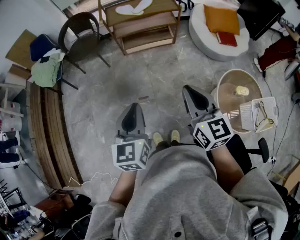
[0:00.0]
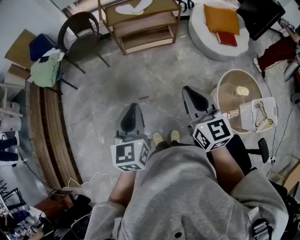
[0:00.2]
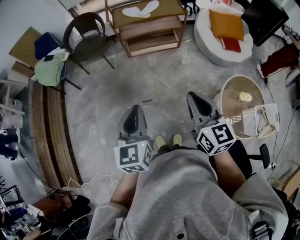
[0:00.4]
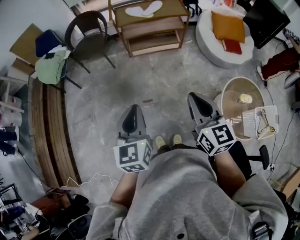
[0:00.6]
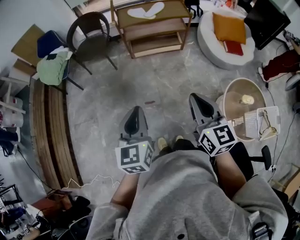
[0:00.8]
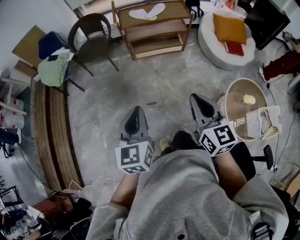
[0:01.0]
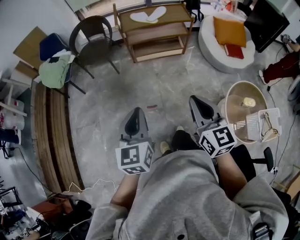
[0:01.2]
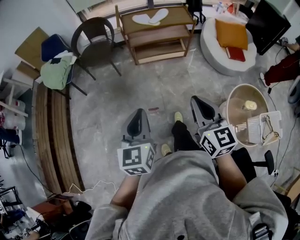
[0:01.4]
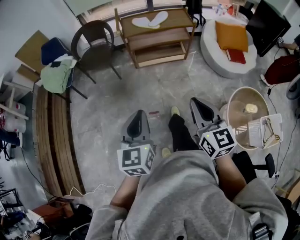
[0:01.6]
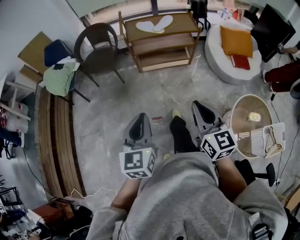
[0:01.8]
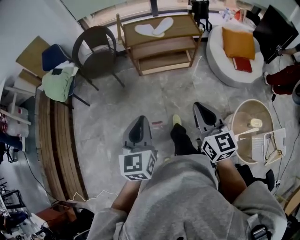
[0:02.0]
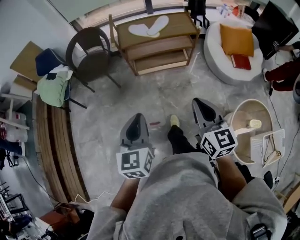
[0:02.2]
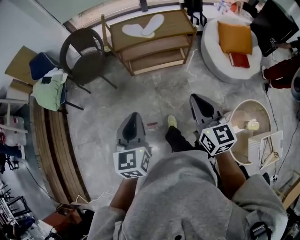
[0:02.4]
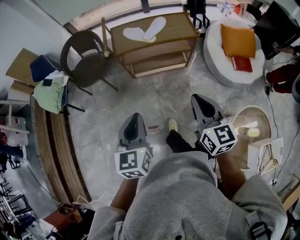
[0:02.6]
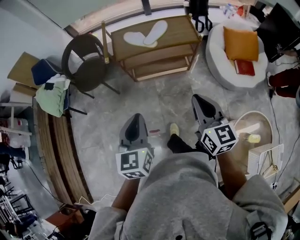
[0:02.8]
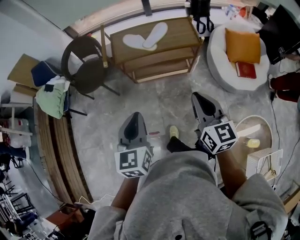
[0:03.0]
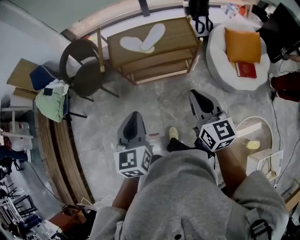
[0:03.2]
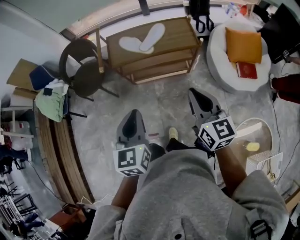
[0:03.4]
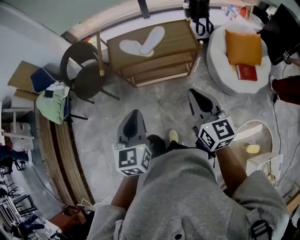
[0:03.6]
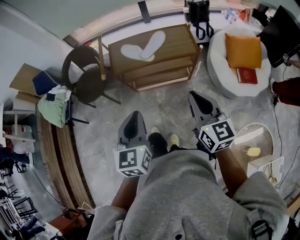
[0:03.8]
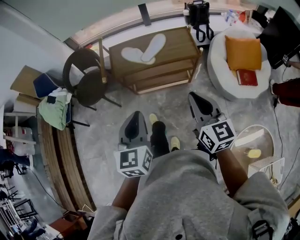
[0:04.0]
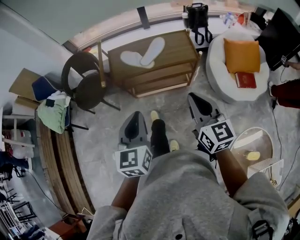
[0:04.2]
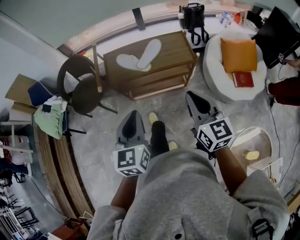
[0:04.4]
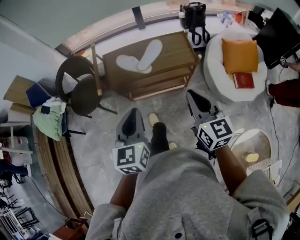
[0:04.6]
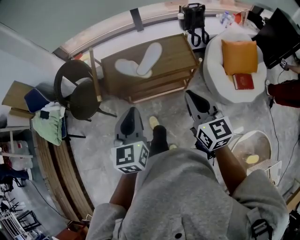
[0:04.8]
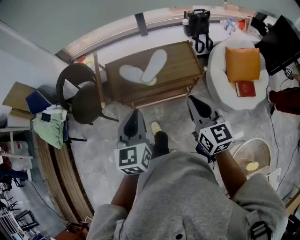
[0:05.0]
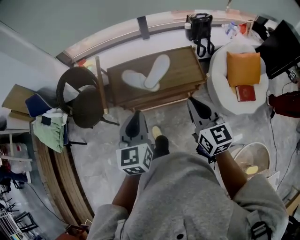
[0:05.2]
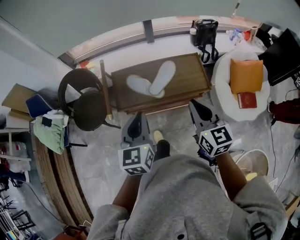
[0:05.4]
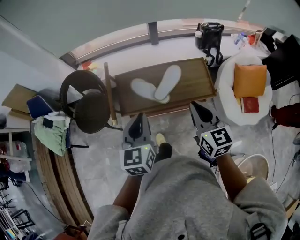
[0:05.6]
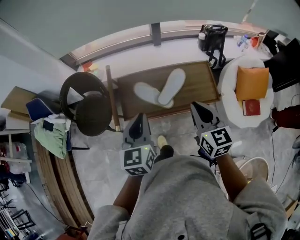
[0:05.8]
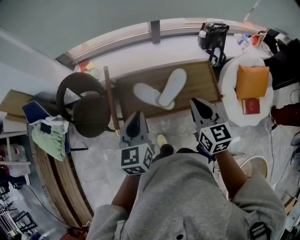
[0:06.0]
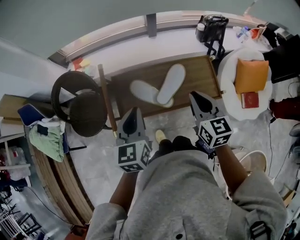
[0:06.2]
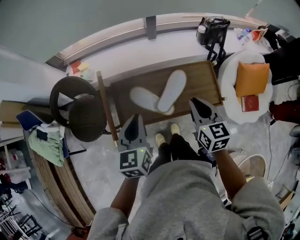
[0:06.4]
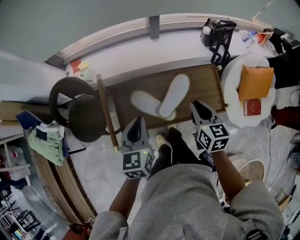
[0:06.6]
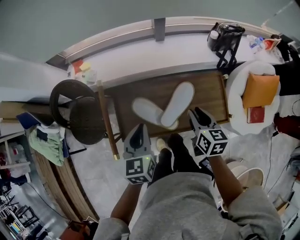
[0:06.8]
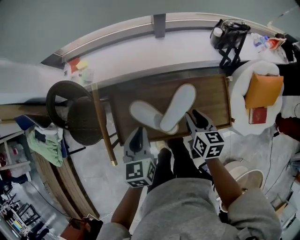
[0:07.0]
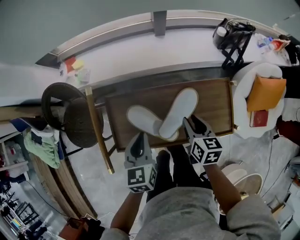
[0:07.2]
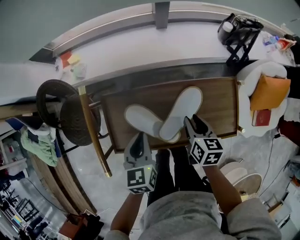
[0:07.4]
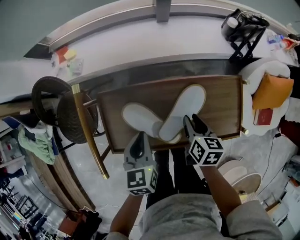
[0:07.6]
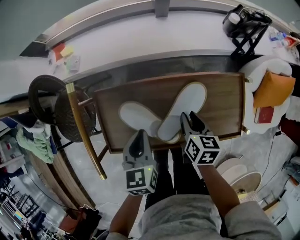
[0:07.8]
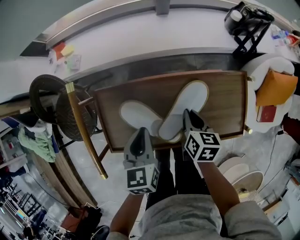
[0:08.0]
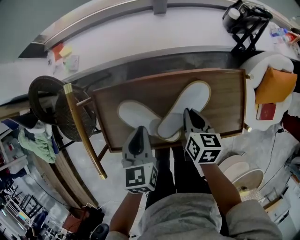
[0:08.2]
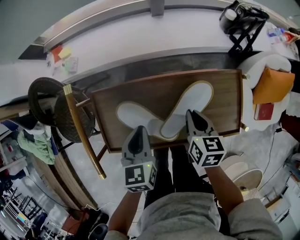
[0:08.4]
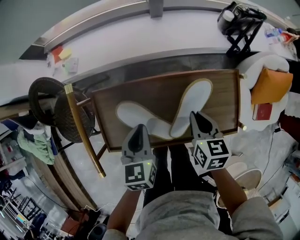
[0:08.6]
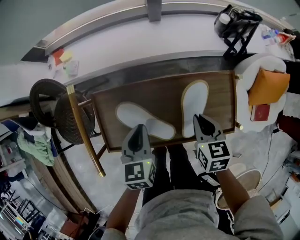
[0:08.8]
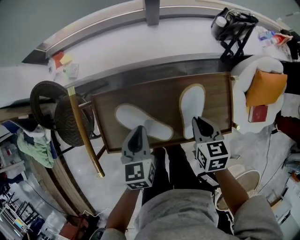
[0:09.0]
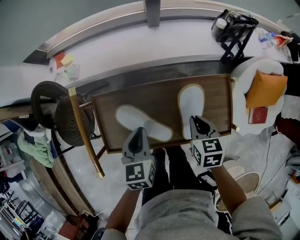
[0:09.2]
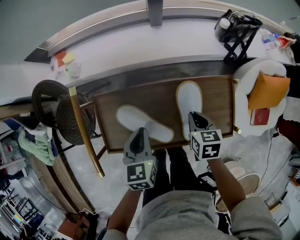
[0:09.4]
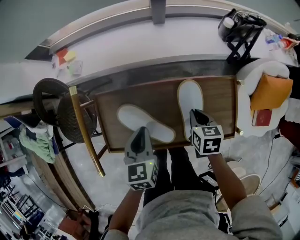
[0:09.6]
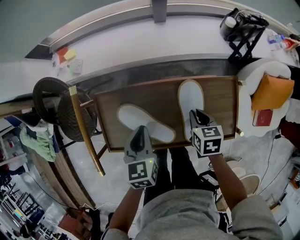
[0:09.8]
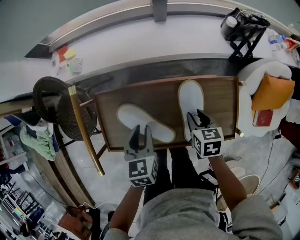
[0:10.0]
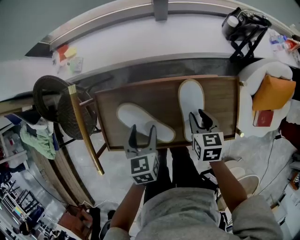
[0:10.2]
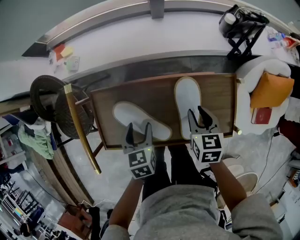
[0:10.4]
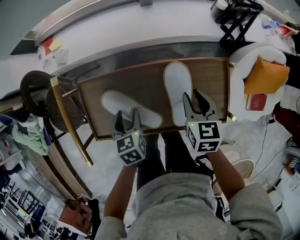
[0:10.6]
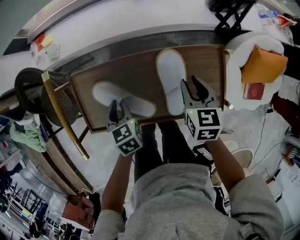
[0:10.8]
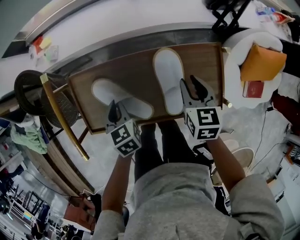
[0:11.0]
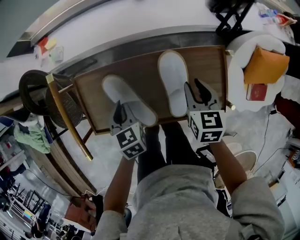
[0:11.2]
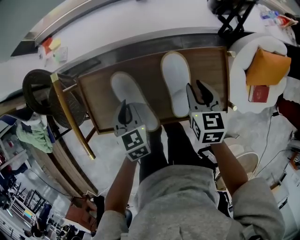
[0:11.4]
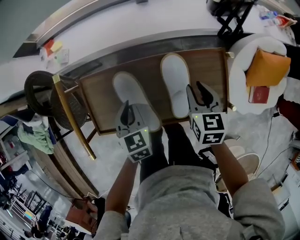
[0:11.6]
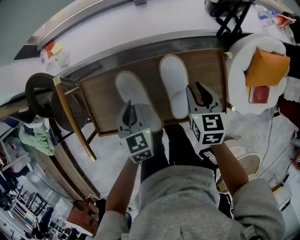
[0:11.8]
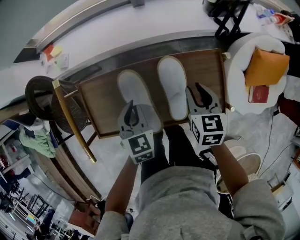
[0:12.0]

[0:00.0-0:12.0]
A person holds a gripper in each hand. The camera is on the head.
0:00.0 to 0:01.6: The left gripper goes some 5 cm to the left. Meanwhile the right gripper moves some 5 cm.
0:01.6 to 0:03.0: The grippers both shift forward by about 35 cm.
0:03.0 to 0:04.4: Both grippers move forward, roughly 10 cm.
0:04.4 to 0:06.0: The grippers both shift forward by approximately 30 cm.
0:06.0 to 0:07.6: Both grippers move downward and forward, some 30 cm. The left gripper swivels about 20 degrees. The right gripper turns by about 40 degrees, and opens its fingers.
0:07.6 to 0:09.0: The right gripper moves upward, some 5 cm, swivels about 20 degrees, and closes up.
0:09.0 to 0:10.4: The left gripper travels downward by some 5 cm, and opens its fingers, while the right gripper opens up.
0:10.4 to 0:12.0: The right gripper shifts by about 5 cm. Meanwhile the left gripper shifts approximately 5 cm to the right, swivels roughly 20 degrees, and closes up.

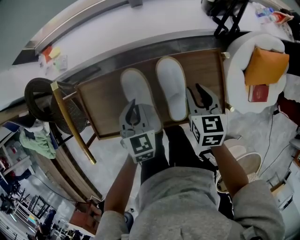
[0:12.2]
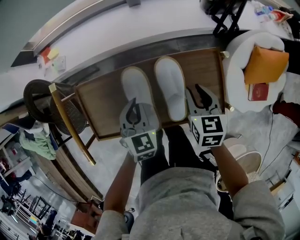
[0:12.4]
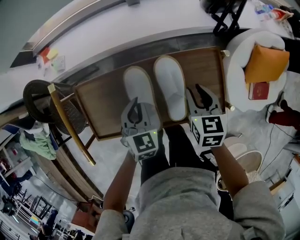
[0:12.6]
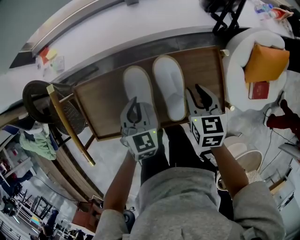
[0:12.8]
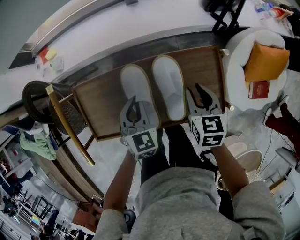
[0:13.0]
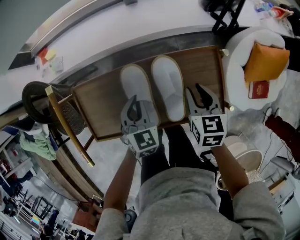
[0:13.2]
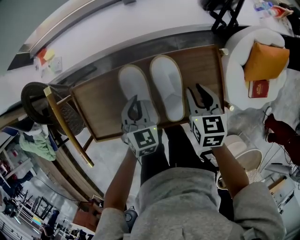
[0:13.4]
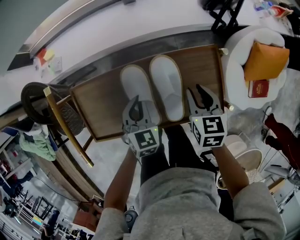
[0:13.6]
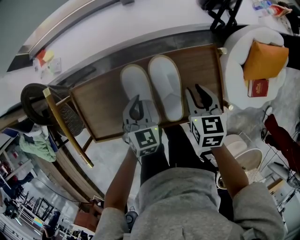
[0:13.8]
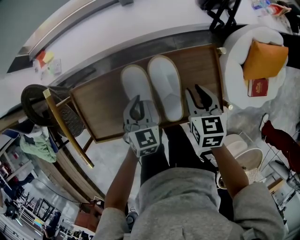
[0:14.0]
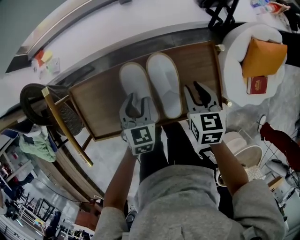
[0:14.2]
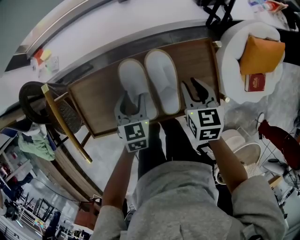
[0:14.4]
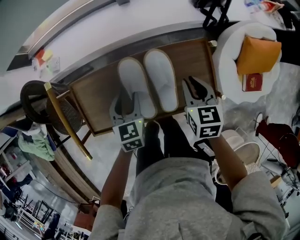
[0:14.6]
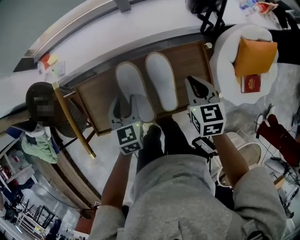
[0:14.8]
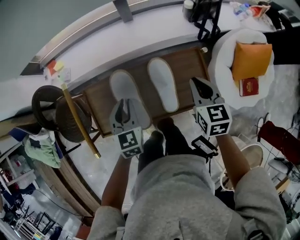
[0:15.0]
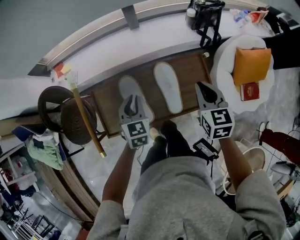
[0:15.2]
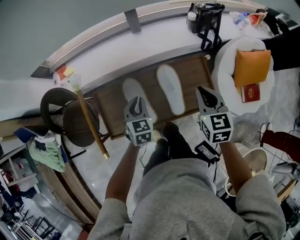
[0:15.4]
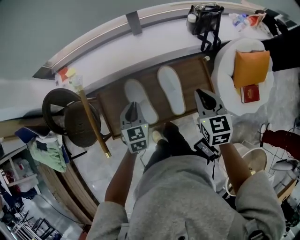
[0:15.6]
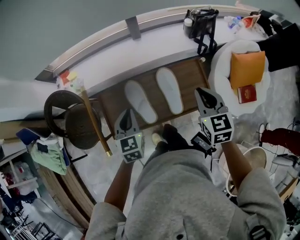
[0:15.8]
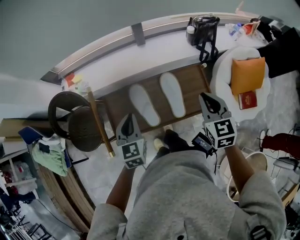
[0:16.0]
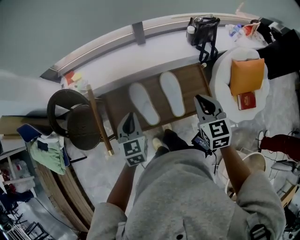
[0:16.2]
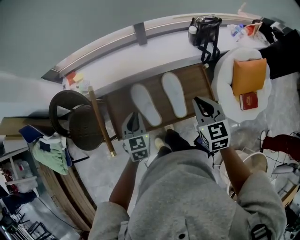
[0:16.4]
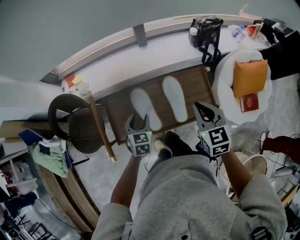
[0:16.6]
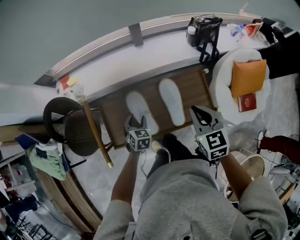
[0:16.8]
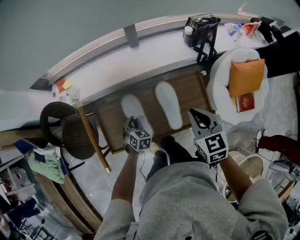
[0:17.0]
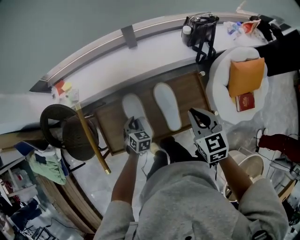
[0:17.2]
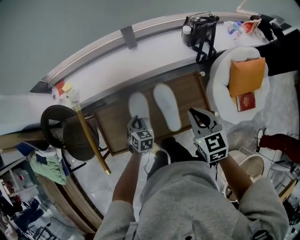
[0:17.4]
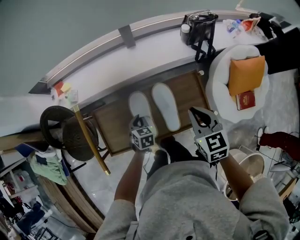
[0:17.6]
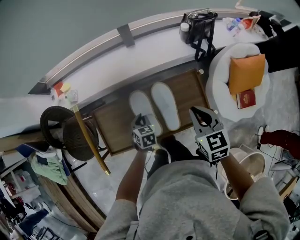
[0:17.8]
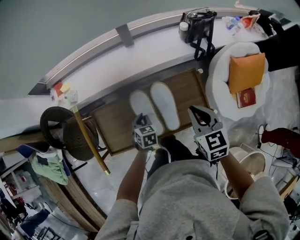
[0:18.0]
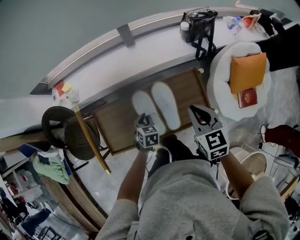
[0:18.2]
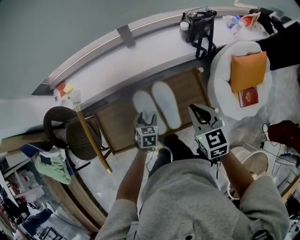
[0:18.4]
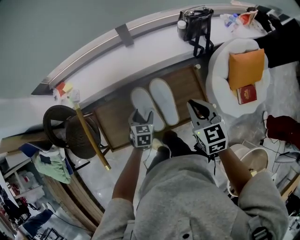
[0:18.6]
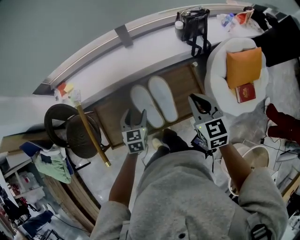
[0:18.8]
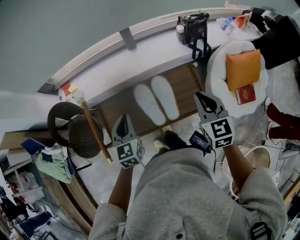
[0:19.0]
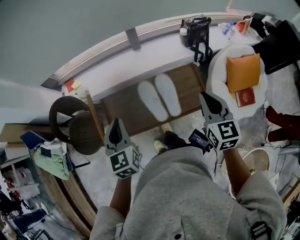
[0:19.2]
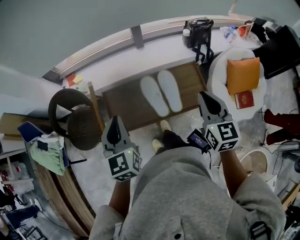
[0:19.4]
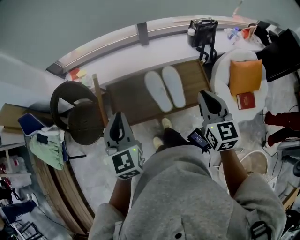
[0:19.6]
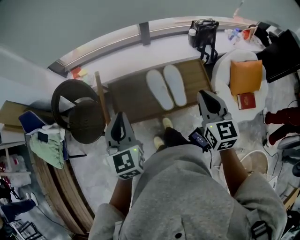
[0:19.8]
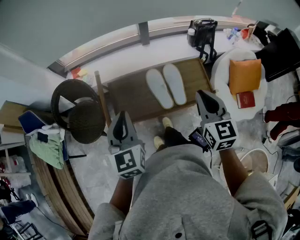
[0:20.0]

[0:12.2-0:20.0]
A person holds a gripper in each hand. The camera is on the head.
0:12.2 to 0:13.8: The left gripper moves some 5 cm.
0:13.8 to 0:15.4: The left gripper shifts about 10 cm upward and to the left, and opens and closes again. Meanwhile the right gripper goes some 15 cm upward, and closes its fingers.
0:15.4 to 0:16.8: The left gripper travels downward by some 5 cm, and opens its fingers. The right gripper shifts by approximately 5 cm.
0:16.8 to 0:18.4: The right gripper changes place by some 5 cm. Meanwhile the left gripper shifts approximately 10 cm to the right, and closes and opens again.
0:18.4 to 0:20.0: The right gripper is displaced backward, upward and to the left by roughly 20 cm. Meanwhile the left gripper goes about 40 cm upward, to the left and backward, tips its fingers upward by about 40 degrees, and closes.

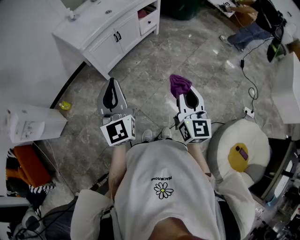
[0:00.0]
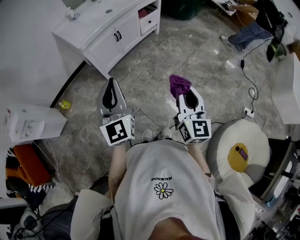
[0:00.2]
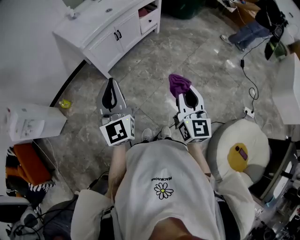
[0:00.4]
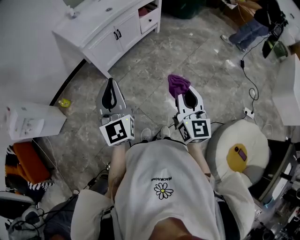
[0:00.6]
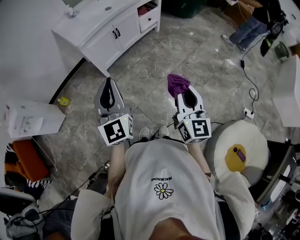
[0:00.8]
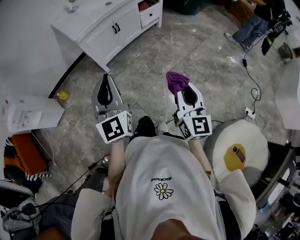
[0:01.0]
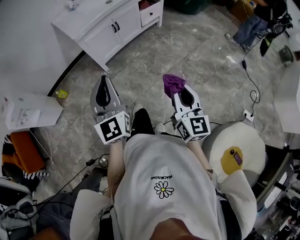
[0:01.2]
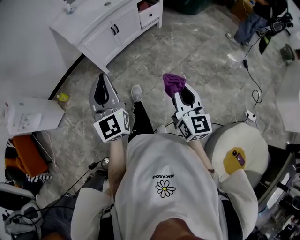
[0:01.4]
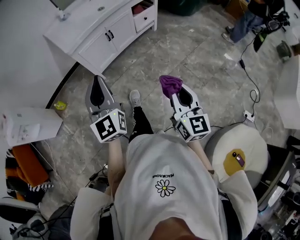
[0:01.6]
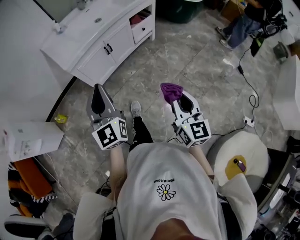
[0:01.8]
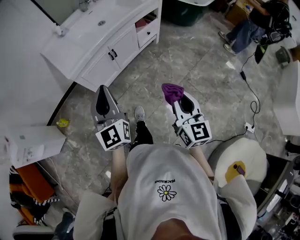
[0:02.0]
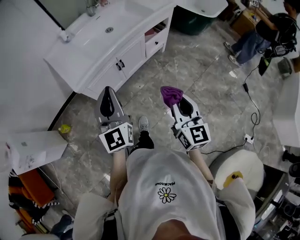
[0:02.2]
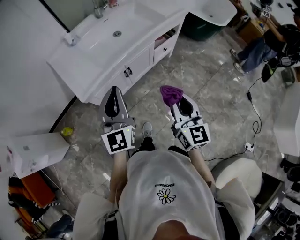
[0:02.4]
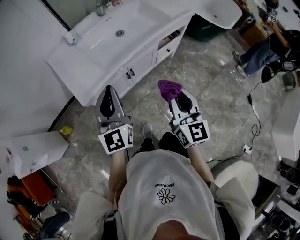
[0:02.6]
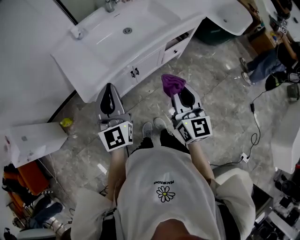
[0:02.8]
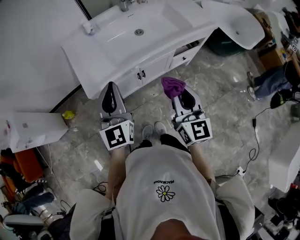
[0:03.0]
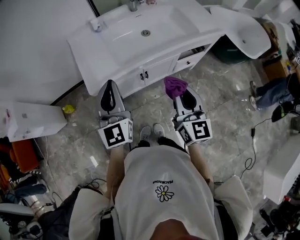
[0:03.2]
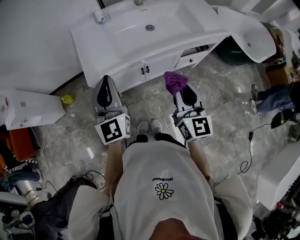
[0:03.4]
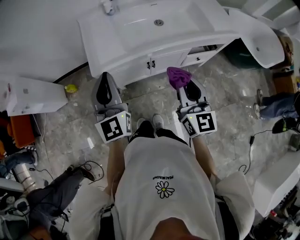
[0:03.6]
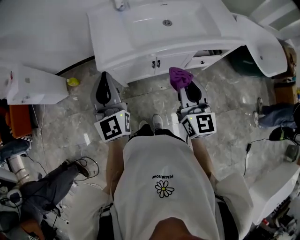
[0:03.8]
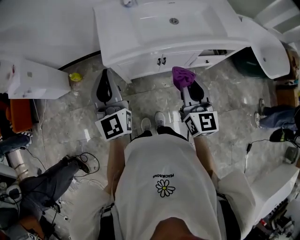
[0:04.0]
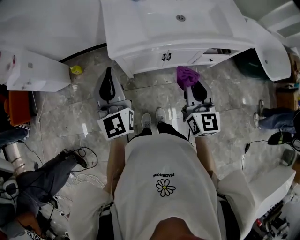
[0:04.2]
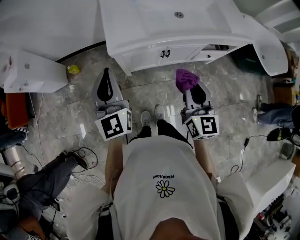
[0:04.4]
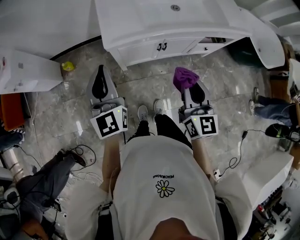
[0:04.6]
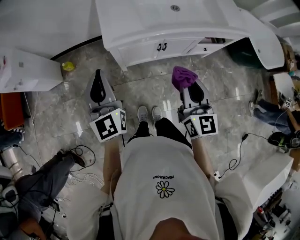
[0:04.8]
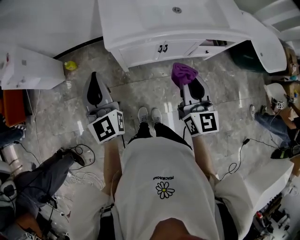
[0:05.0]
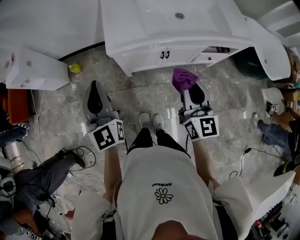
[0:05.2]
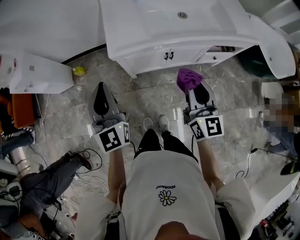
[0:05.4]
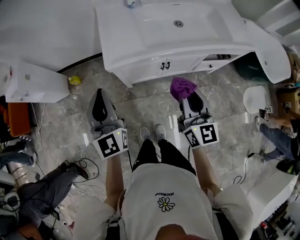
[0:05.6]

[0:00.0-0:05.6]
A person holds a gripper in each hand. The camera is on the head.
0:00.0 to 0:01.4: The left gripper shifts by about 5 cm. Meanwhile the right gripper shifts by about 5 cm.
0:01.4 to 0:02.8: Both grippers are carried forward, roughly 50 cm.
0:02.8 to 0:04.2: The right gripper shifts about 5 cm to the left, and swivels some 20 degrees, while the left gripper travels to the left by roughly 10 cm, and rotates about 30 degrees.
